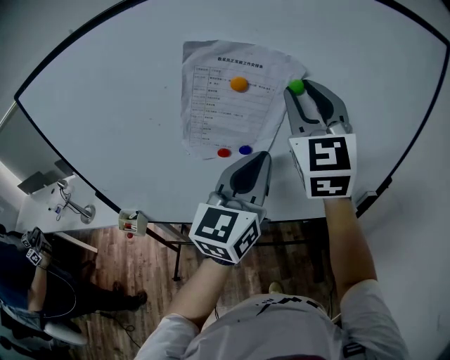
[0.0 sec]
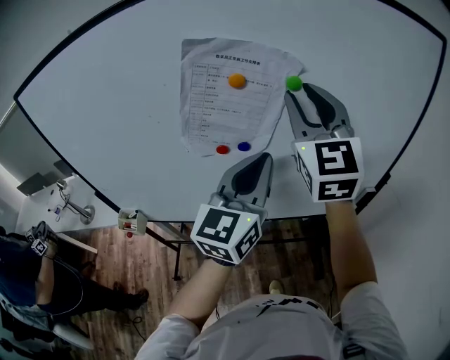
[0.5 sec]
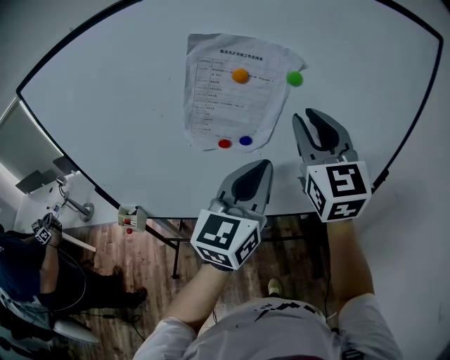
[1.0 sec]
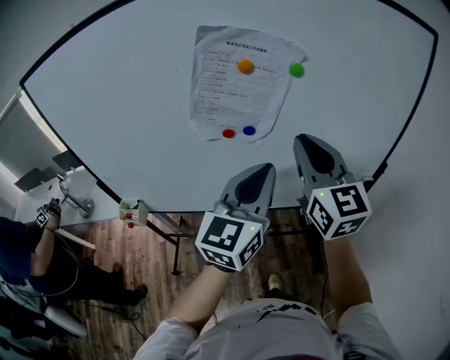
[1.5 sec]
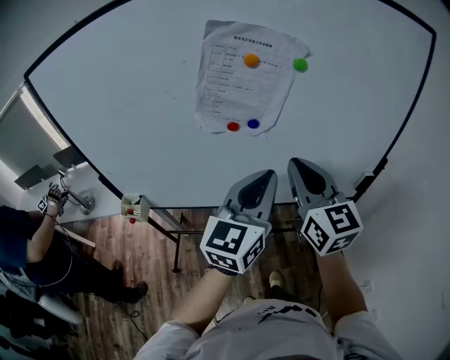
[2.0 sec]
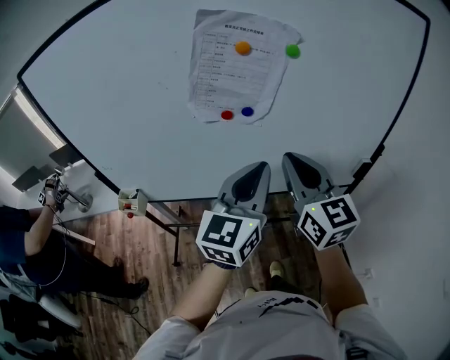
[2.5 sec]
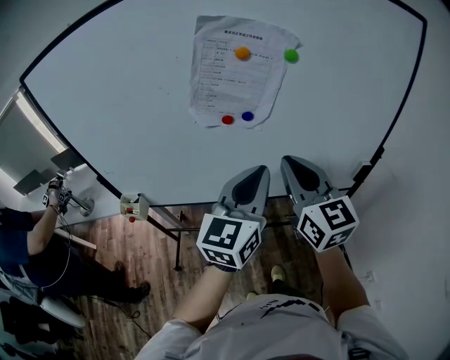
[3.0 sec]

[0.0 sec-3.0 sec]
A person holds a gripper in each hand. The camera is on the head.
0.0 sec to 1.5 sec: The right gripper shifts roughly 15 cm downward and backward, and turns by approximately 20 degrees, while the left gripper is displaced backward by about 5 cm.
1.5 sec to 3.0 sec: The right gripper moves downward and backward, about 10 cm.

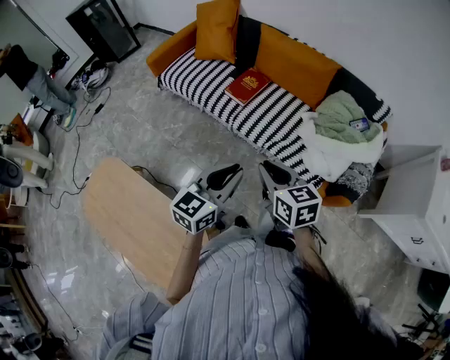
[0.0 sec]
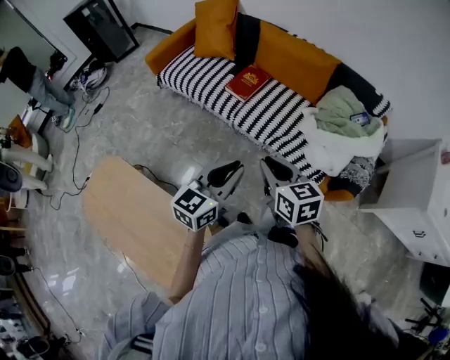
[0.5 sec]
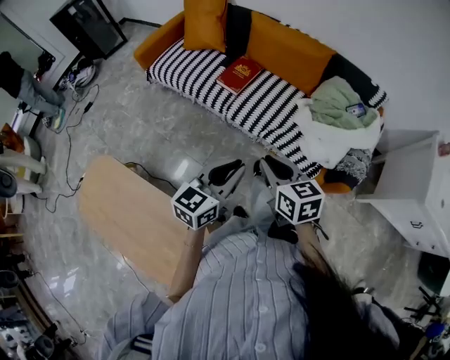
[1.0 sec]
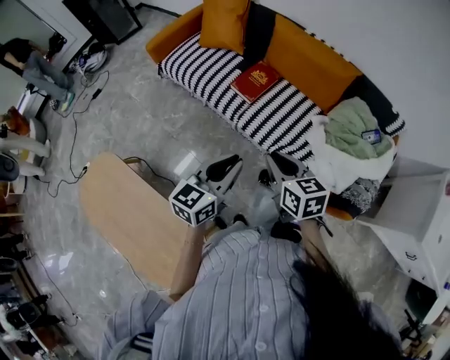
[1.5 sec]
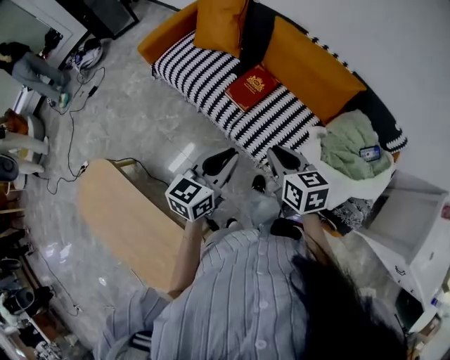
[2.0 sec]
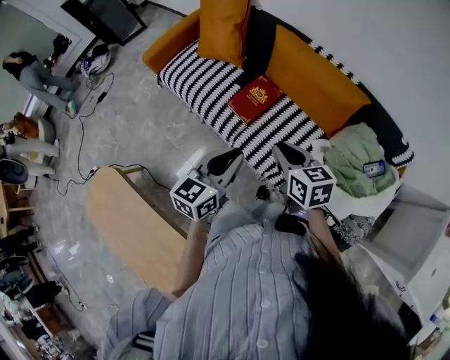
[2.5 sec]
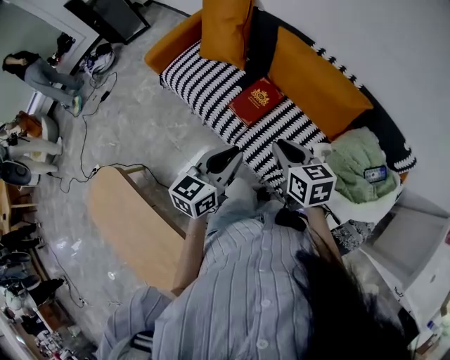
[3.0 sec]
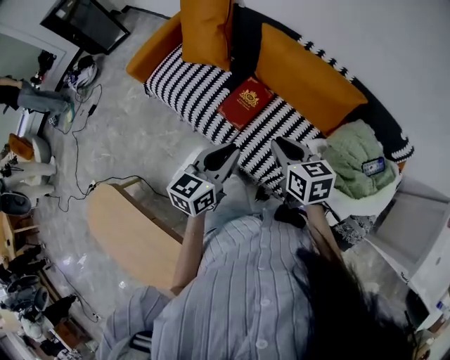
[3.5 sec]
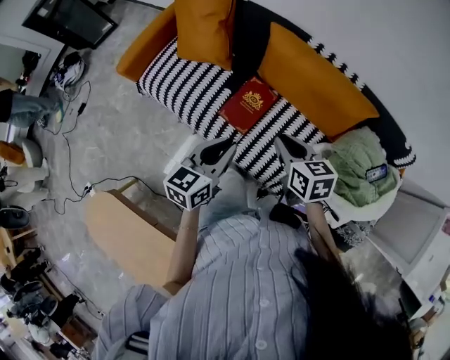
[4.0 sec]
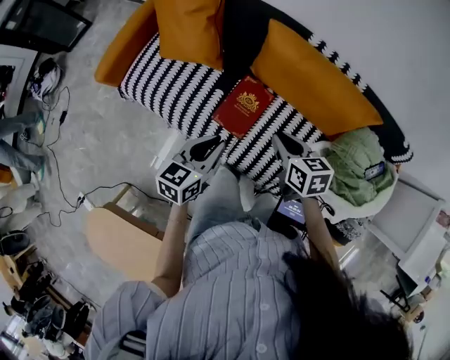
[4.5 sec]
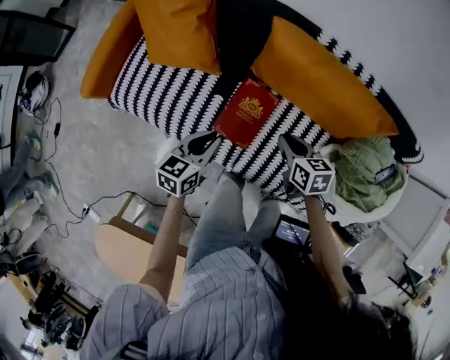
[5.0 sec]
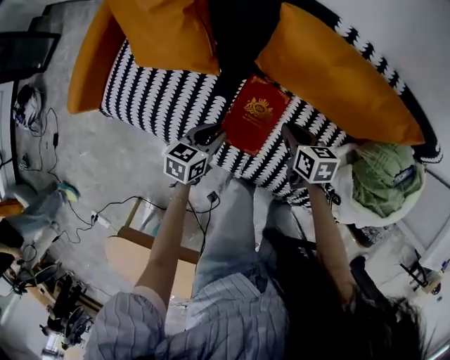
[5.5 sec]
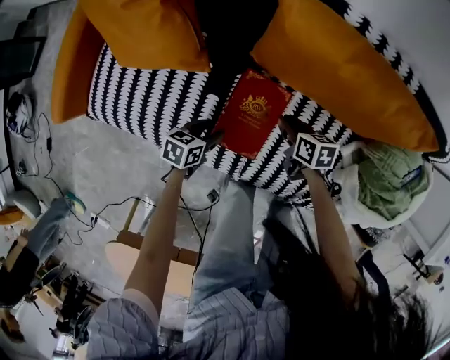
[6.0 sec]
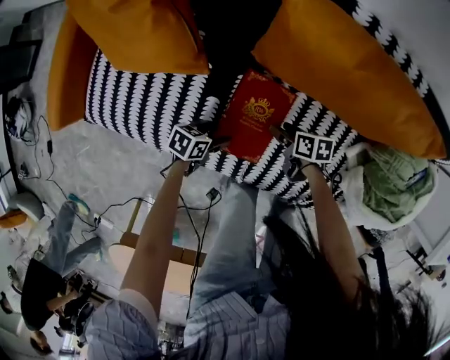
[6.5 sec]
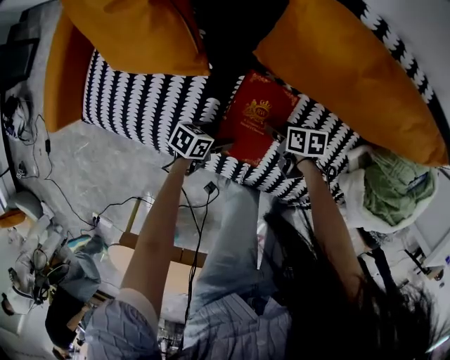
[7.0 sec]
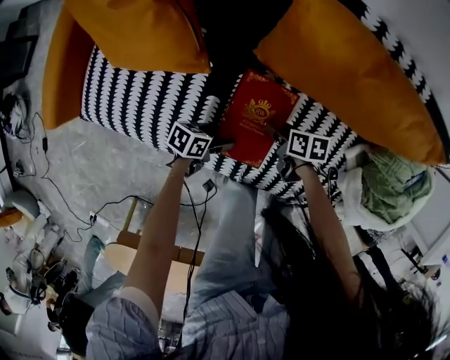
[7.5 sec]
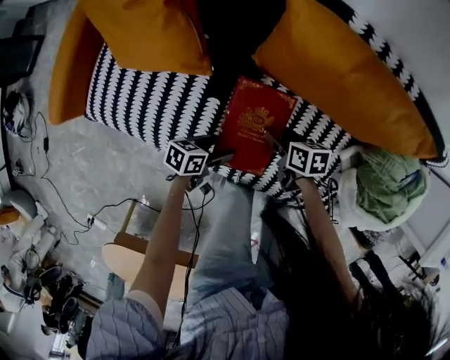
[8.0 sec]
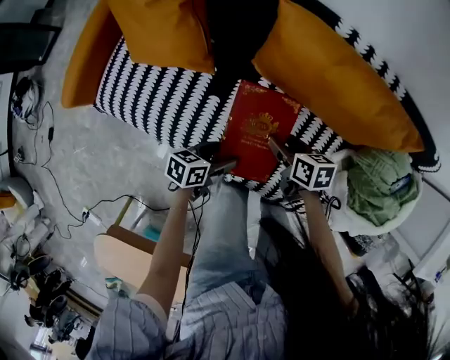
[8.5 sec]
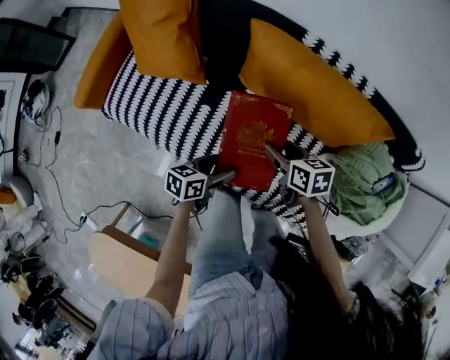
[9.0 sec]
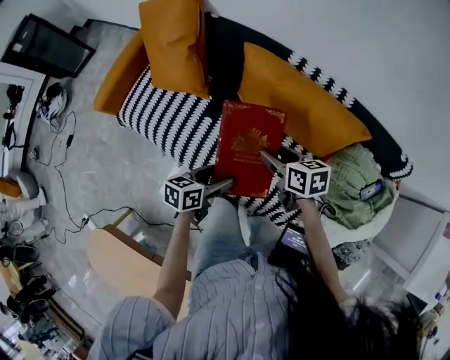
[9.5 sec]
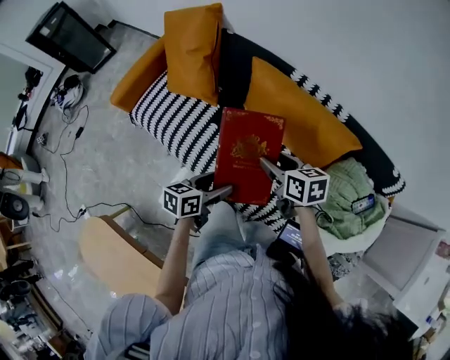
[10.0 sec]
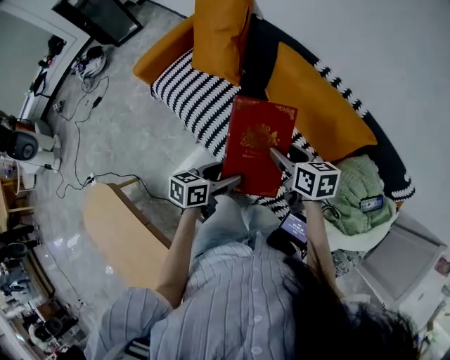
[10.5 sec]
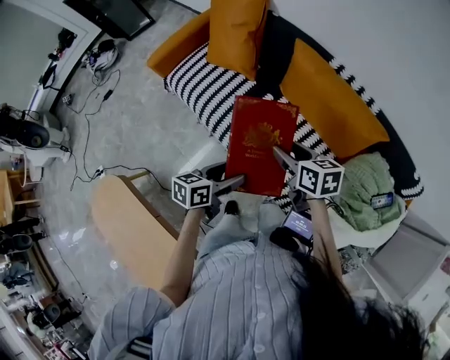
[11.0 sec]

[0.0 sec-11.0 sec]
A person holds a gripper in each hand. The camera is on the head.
0.0 sec to 2.0 sec: The two grippers go approximately 25 cm forward.
2.0 sec to 3.5 sec: Both grippers move forward, some 15 cm.
3.5 sec to 5.5 sec: The left gripper goes roughly 50 cm downward, forward and to the left, and rotates about 30 degrees; the right gripper shifts approximately 40 cm downward and forward, and rotates roughly 30 degrees.
5.5 sec to 7.5 sec: The grippers both shift downward by about 15 cm. The left gripper changes its angle by roughly 30 degrees, and opens. Meanwhile the right gripper rotates roughly 30 degrees, and opens up.
7.5 sec to 9.0 sec: The grippers both shift upward by about 25 cm. The left gripper rotates approximately 20 degrees; the right gripper swivels approximately 30 degrees.
9.0 sec to 11.0 sec: The grippers both shift upward and backward by approximately 25 cm. The right gripper swivels some 20 degrees, while the left gripper swivels about 20 degrees.

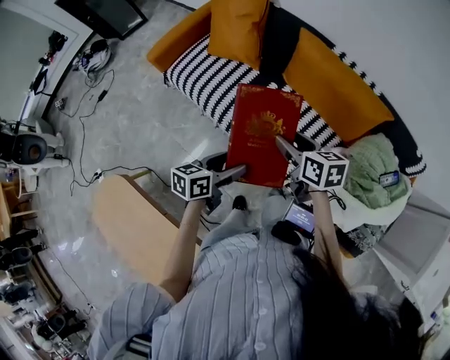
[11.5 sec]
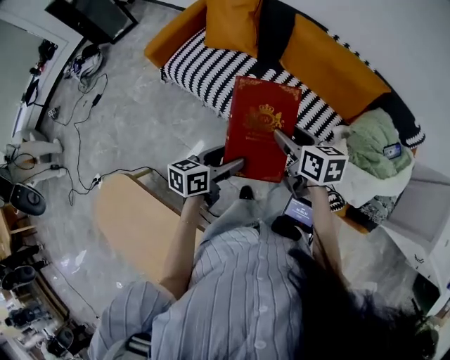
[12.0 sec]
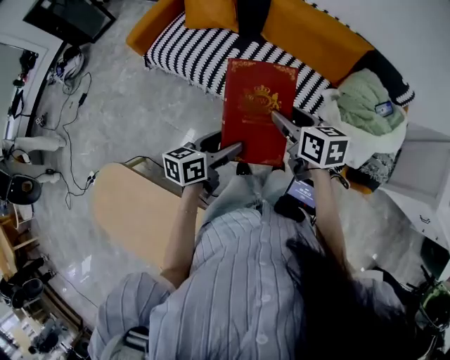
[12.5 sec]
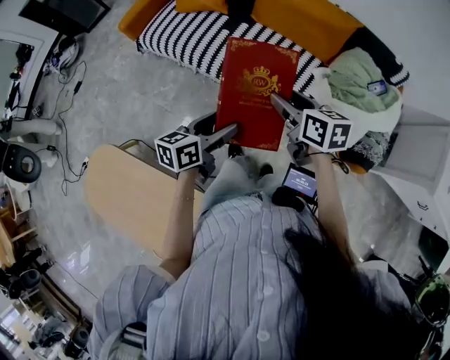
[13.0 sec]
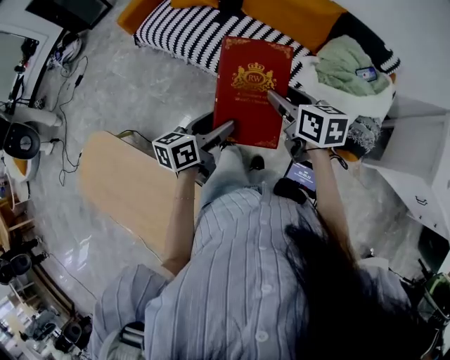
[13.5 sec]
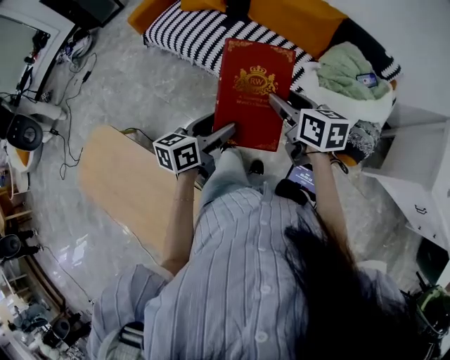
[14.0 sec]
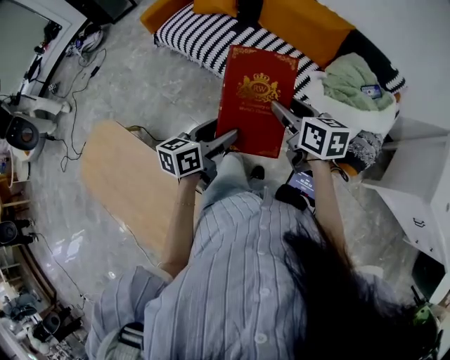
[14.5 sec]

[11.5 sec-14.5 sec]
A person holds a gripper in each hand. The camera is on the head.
11.5 sec to 13.0 sec: The grippers both shift backward by about 20 cm.
13.0 sec to 14.5 sec: The two grippers go some 15 cm backward and to the right.

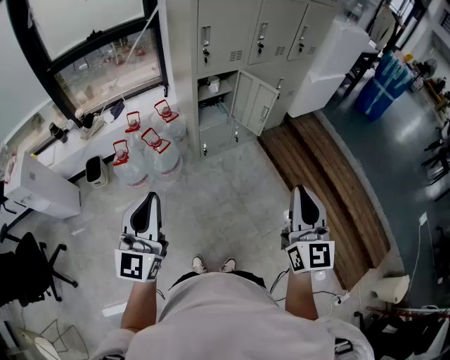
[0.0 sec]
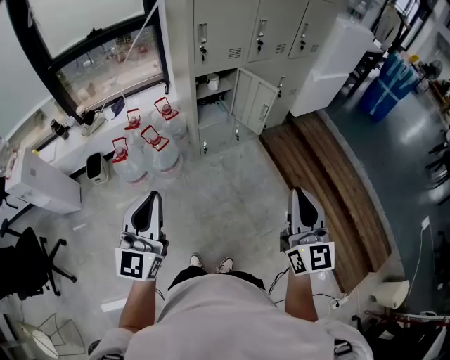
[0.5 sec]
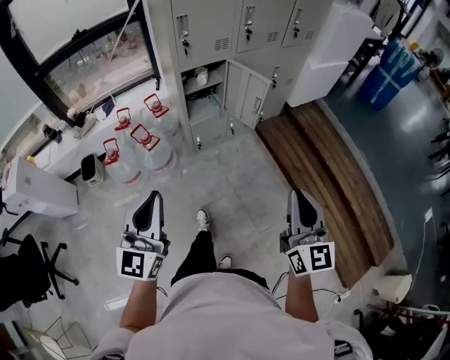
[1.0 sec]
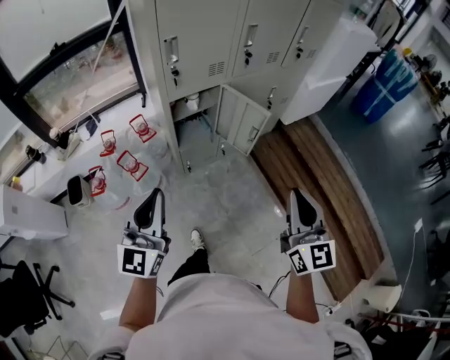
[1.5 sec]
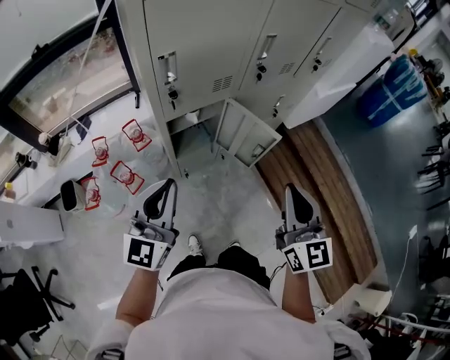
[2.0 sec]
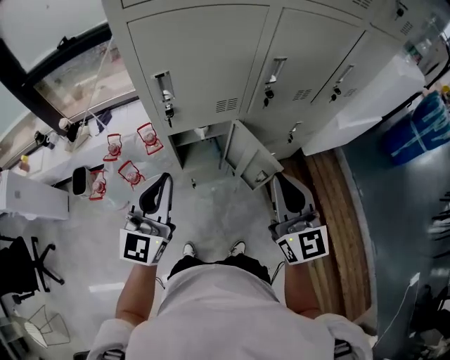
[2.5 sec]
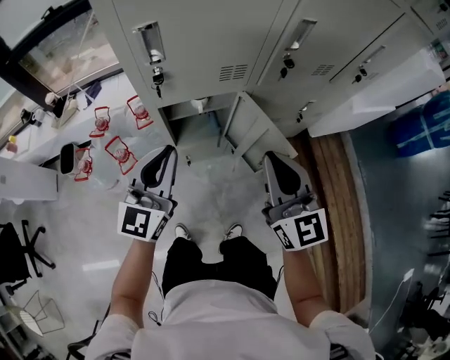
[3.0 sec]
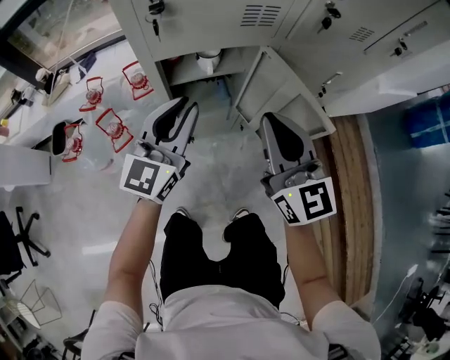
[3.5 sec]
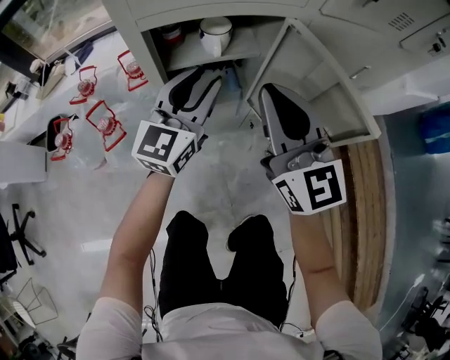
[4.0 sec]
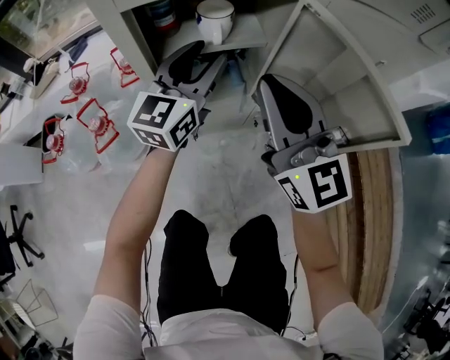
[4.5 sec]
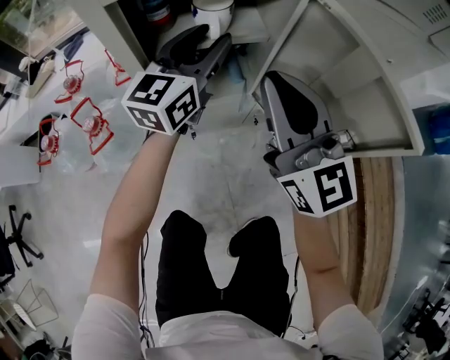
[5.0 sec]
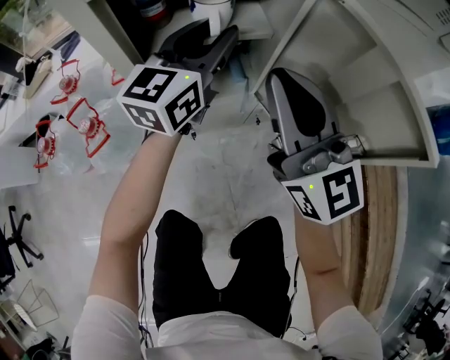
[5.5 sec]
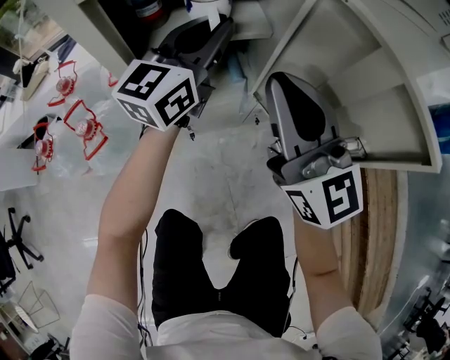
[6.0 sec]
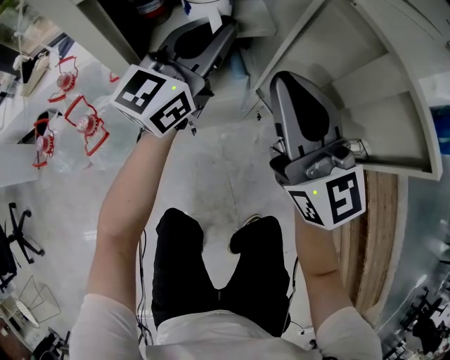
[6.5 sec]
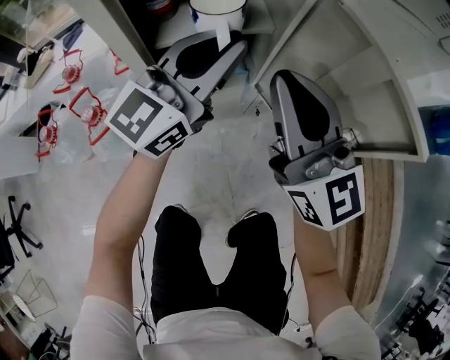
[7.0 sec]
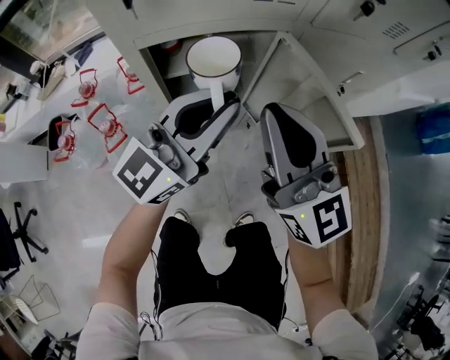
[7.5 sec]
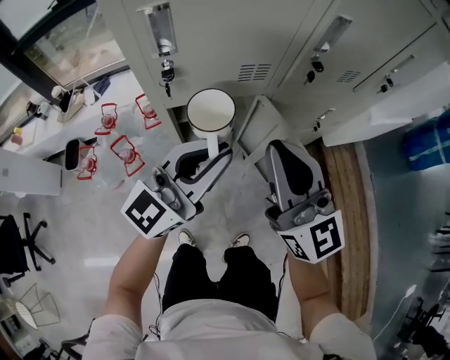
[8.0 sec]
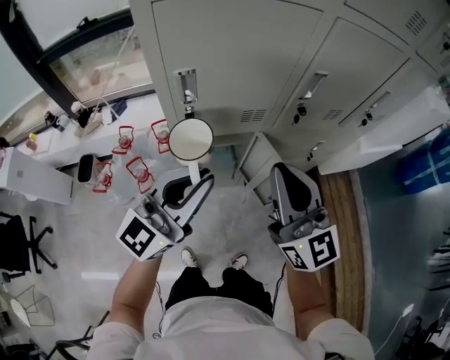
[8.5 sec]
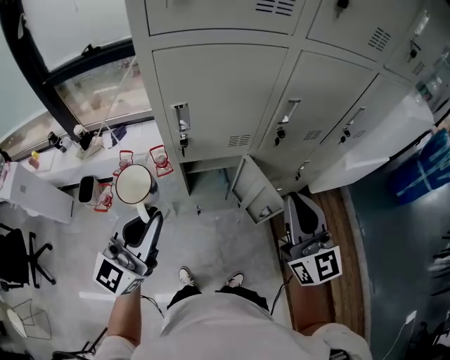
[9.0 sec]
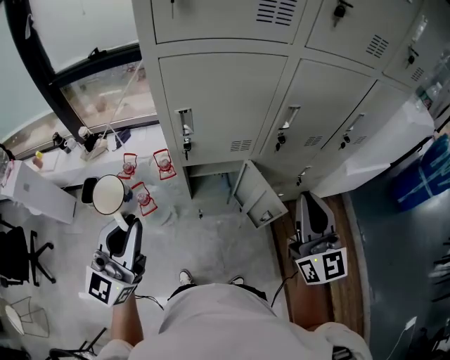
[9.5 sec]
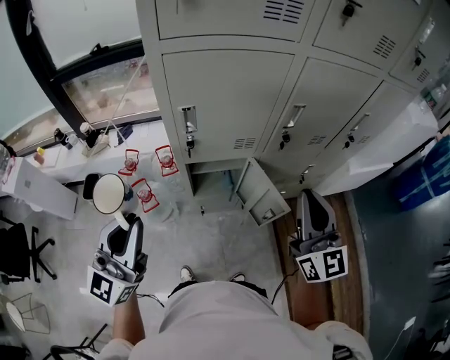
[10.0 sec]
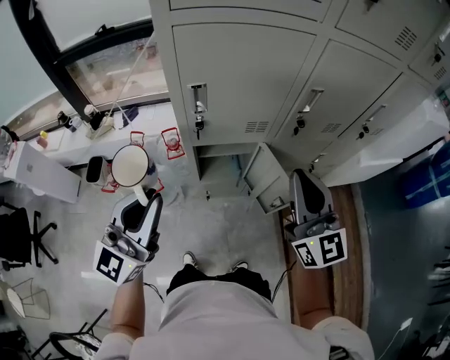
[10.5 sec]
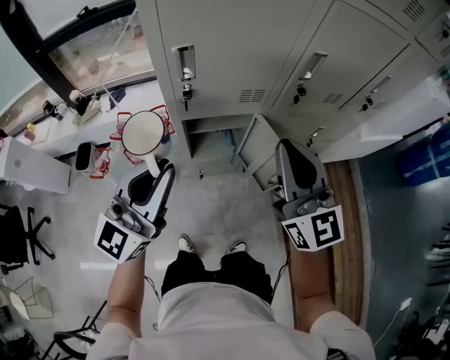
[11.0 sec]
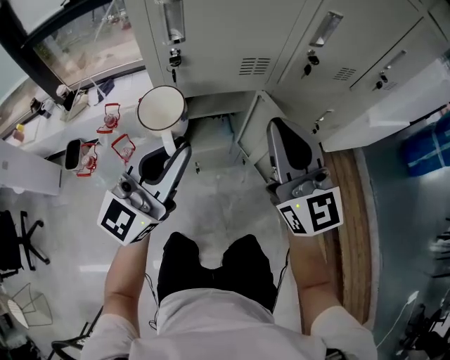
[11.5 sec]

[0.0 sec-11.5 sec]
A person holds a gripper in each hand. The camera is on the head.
0.0 sec to 2.0 sec: Both grippers travel together forward, some 40 cm.
2.0 sec to 4.0 sec: Both grippers move downward and forward, some 35 cm. The left gripper opens, while the right gripper swivels some 30 degrees.
4.0 sec to 6.0 sec: The right gripper heads downward, covering about 10 cm. Meanwhile the left gripper heads forward, covering about 10 cm.
6.0 sec to 7.5 sec: The right gripper travels upward and backward by some 15 cm; the left gripper goes approximately 20 cm backward and upward.
7.5 sec to 9.5 sec: The left gripper shifts roughly 35 cm upward, backward and to the left, and swivels some 30 degrees, while the right gripper moves upward and to the right, roughly 30 cm.
9.5 sec to 11.5 sec: The left gripper shifts some 20 cm downward, to the right and forward. Meanwhile the right gripper moves downward and to the left, some 15 cm.
